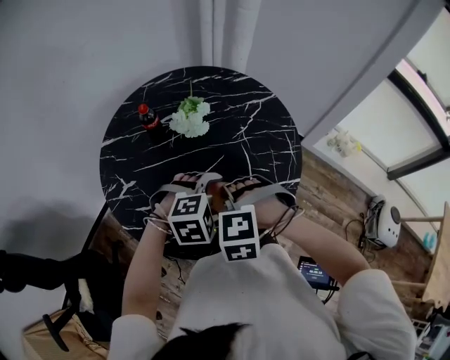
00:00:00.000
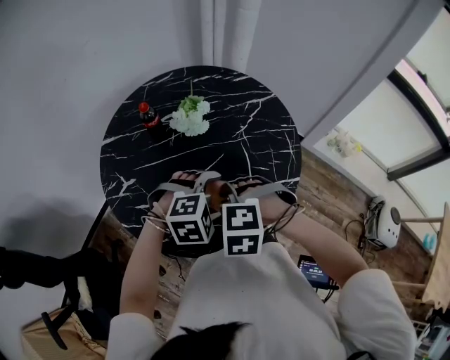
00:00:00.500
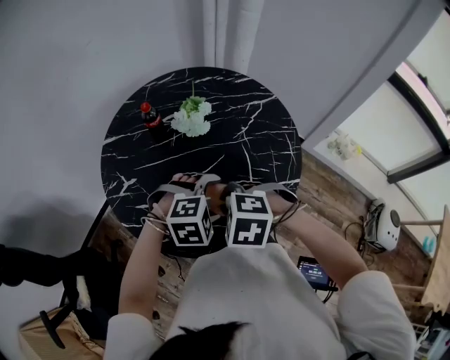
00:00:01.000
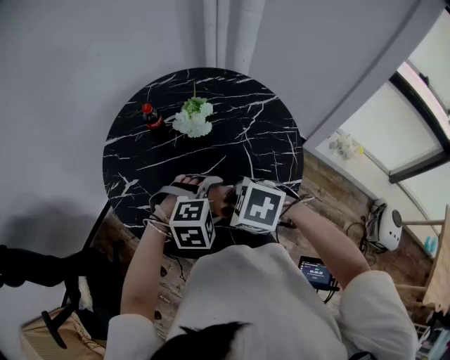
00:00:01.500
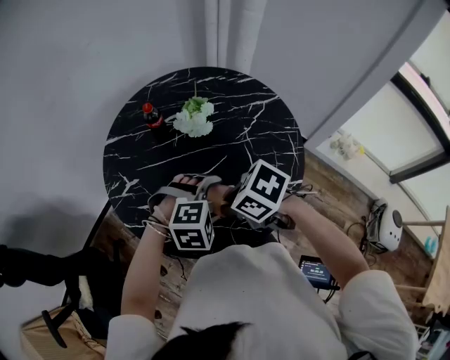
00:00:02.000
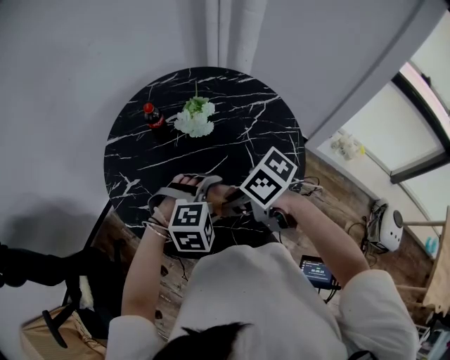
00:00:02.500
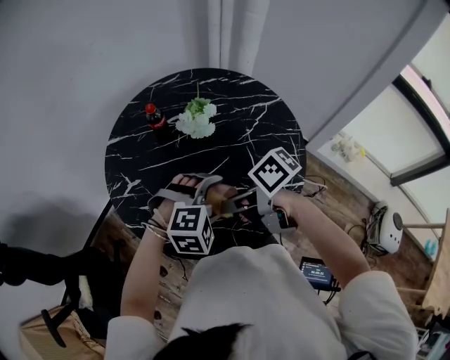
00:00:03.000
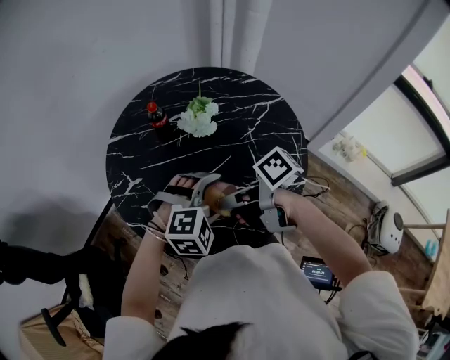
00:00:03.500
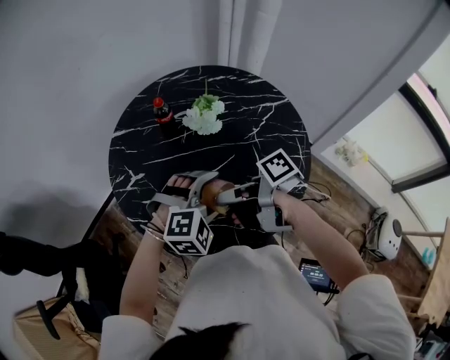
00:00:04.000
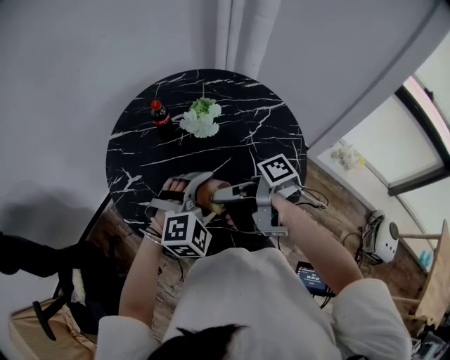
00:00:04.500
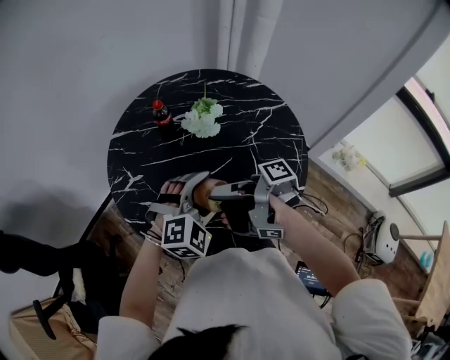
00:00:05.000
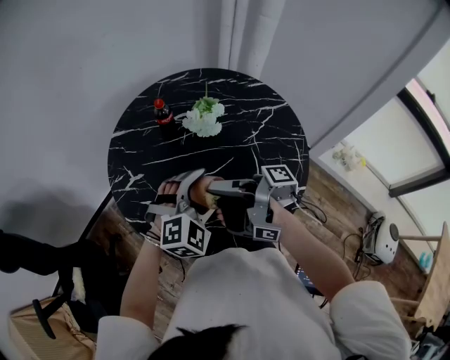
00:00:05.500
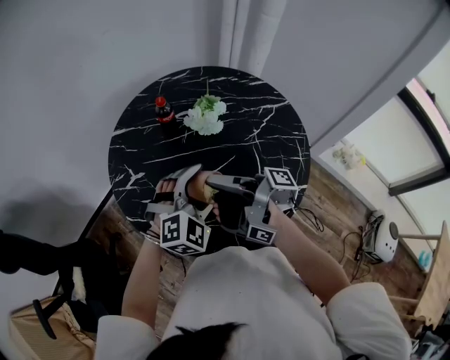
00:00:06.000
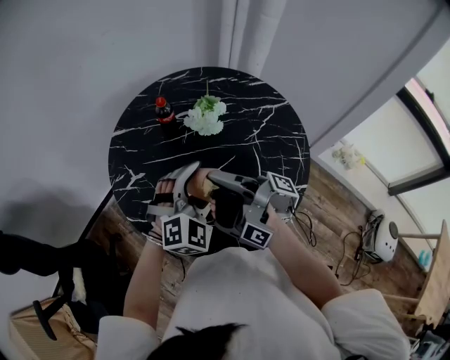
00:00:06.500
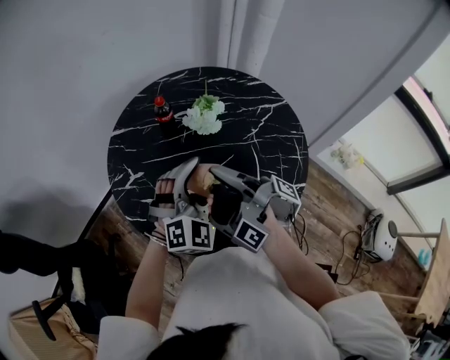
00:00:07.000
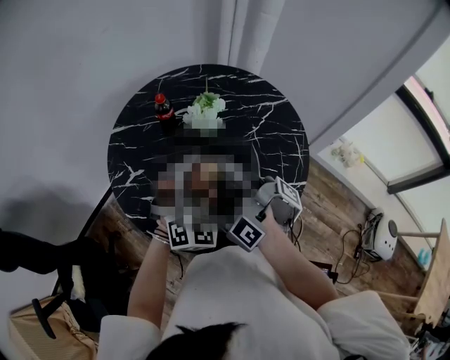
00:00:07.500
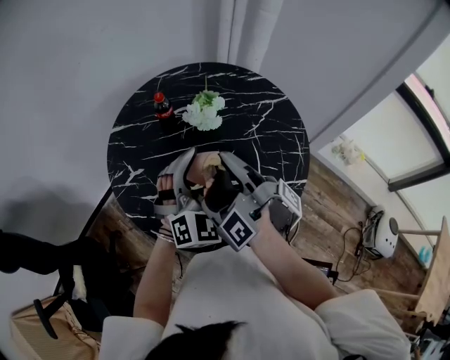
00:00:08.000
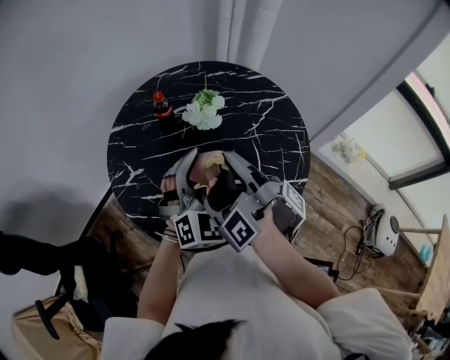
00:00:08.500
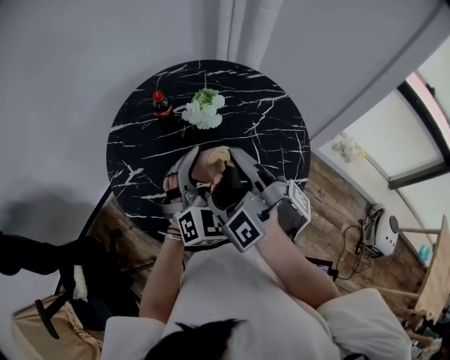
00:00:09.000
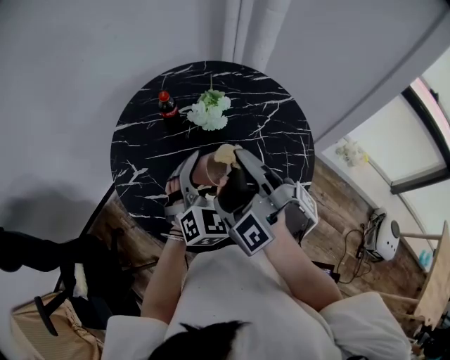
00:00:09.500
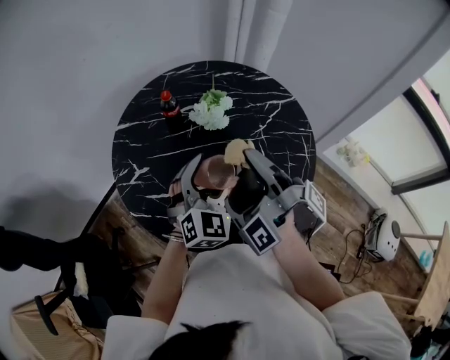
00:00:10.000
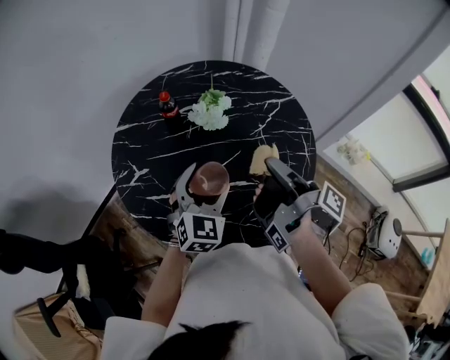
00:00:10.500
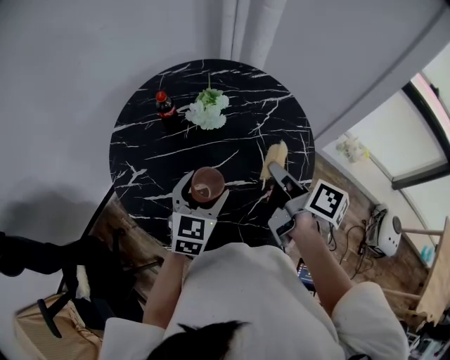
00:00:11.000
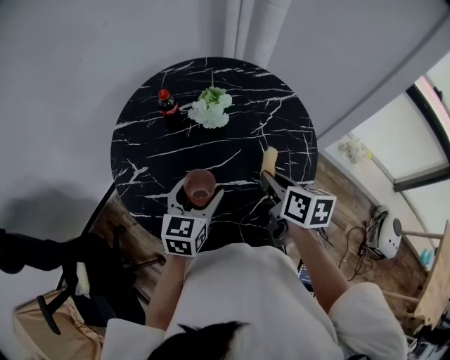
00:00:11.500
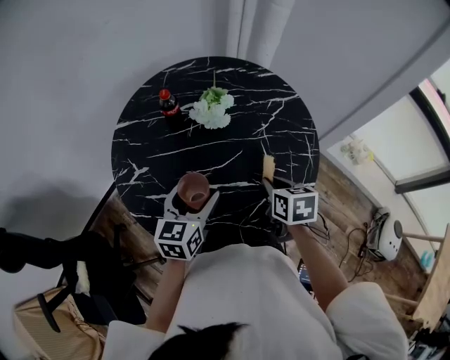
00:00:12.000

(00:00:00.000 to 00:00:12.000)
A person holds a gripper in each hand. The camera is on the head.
00:00:00.000 - 00:00:02.000: The right gripper swivels approximately 70 degrees.
00:00:02.000 - 00:00:04.000: The right gripper points its fingers roughly 40 degrees further upward.
00:00:04.000 - 00:00:06.000: The right gripper changes its angle by approximately 40 degrees, while the left gripper turns by roughly 20 degrees.
00:00:06.000 - 00:00:08.000: The left gripper travels upward by some 5 cm, and turns by roughly 20 degrees, while the right gripper ends up approximately 5 cm from where it was, and turns by about 40 degrees.
00:00:08.000 - 00:00:10.000: There are only small adjustments of the grippers.
00:00:10.000 - 00:00:12.000: The left gripper goes about 5 cm downward, and rotates around the line of its fingers by some 50 degrees, counterclockwise from behind. The right gripper shifts some 20 cm downward, and twists some 100 degrees counterclockwise, seen from behind.

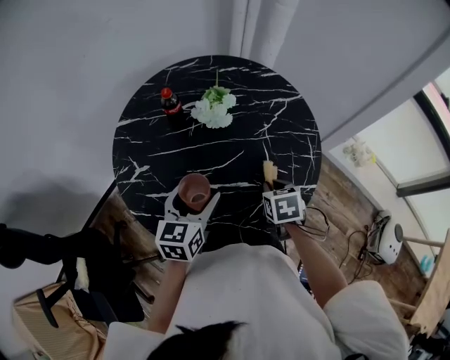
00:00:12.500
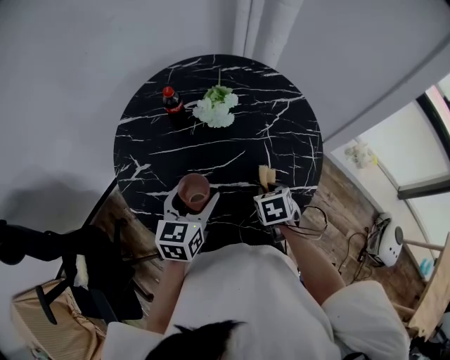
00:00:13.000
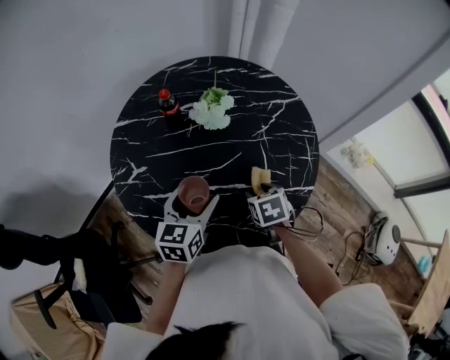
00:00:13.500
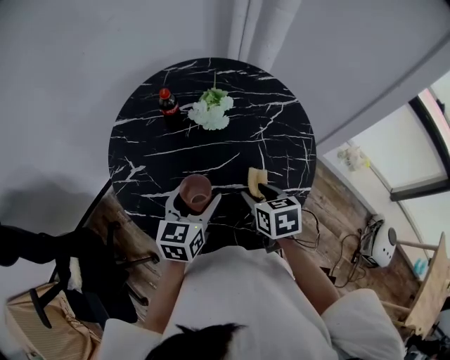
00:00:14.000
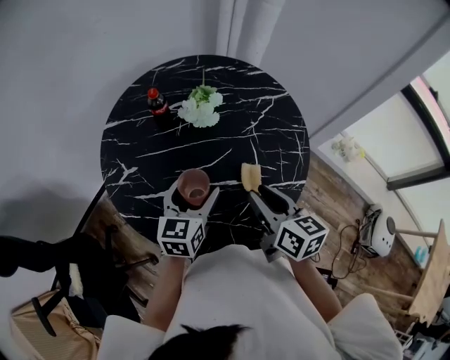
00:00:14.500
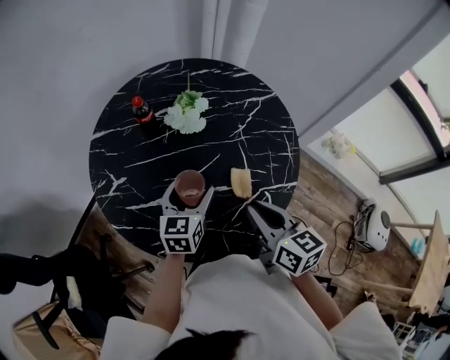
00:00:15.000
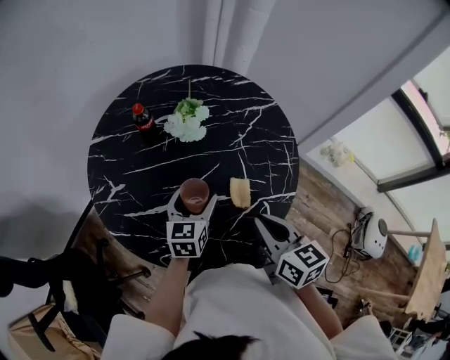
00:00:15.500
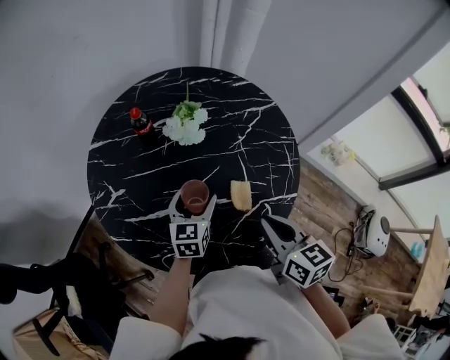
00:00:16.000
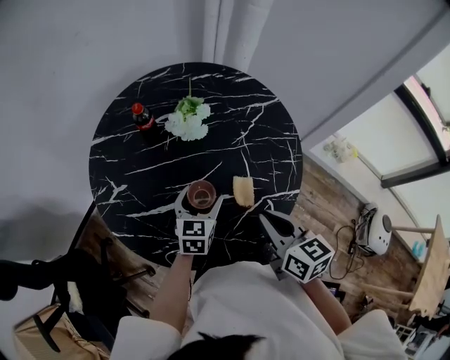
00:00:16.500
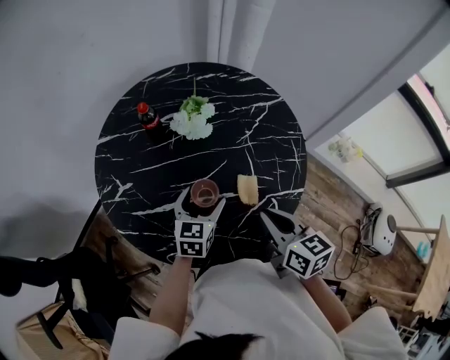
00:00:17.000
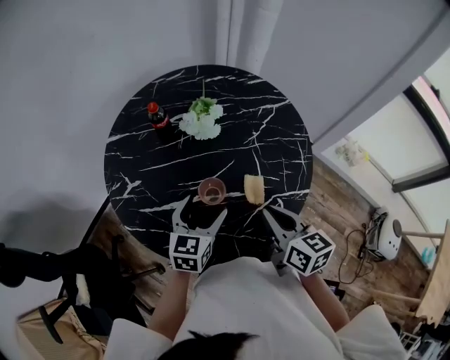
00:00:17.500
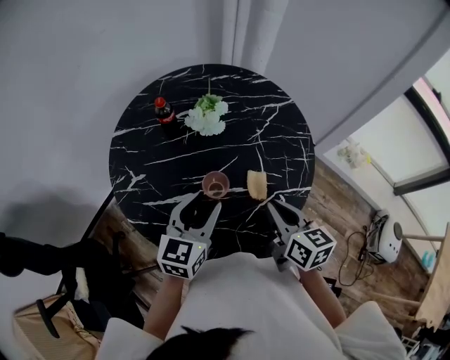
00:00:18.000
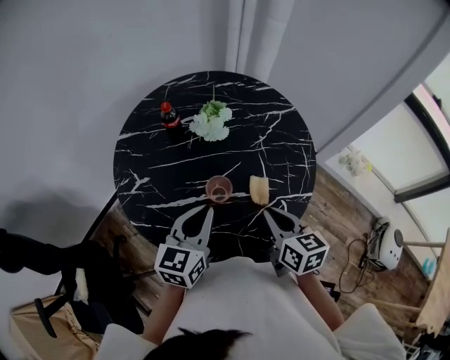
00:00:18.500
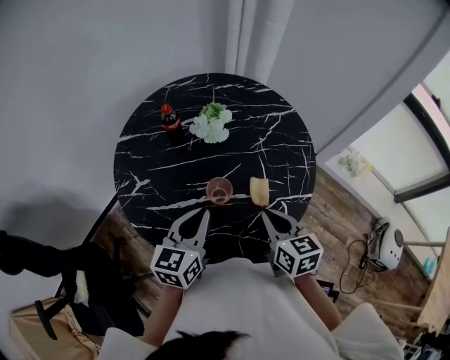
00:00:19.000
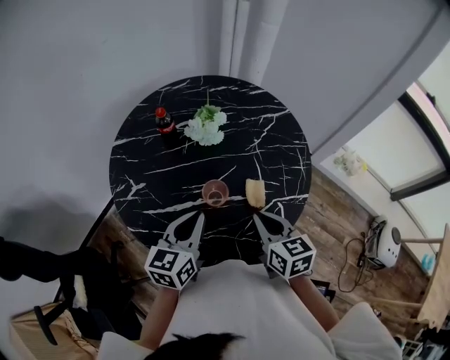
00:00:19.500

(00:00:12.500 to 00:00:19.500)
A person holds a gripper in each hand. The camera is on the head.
00:00:12.500 - 00:00:14.500: The right gripper moves upward, approximately 15 cm, tips its fingers upward by about 40 degrees, and opens.
00:00:14.500 - 00:00:16.000: The left gripper goes roughly 10 cm downward. Meanwhile the right gripper closes its fingers.
00:00:16.000 - 00:00:17.500: The left gripper moves backward, roughly 5 cm.
00:00:17.500 - 00:00:19.500: The left gripper moves upward, some 5 cm, and closes up.

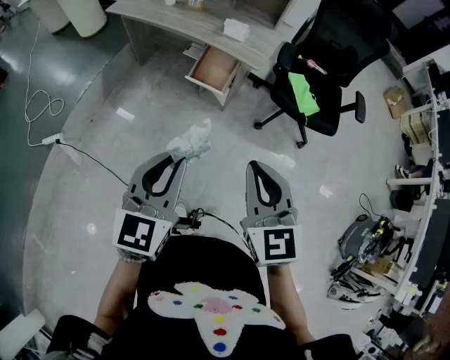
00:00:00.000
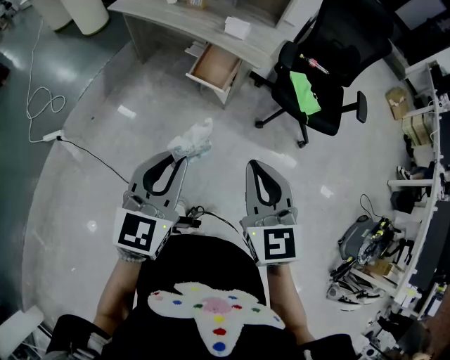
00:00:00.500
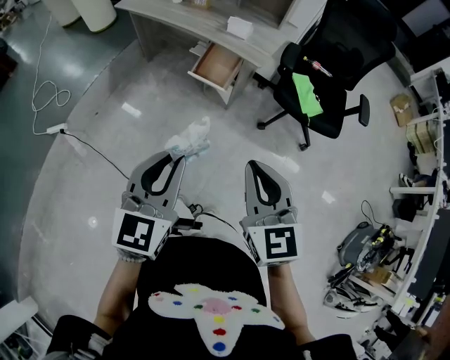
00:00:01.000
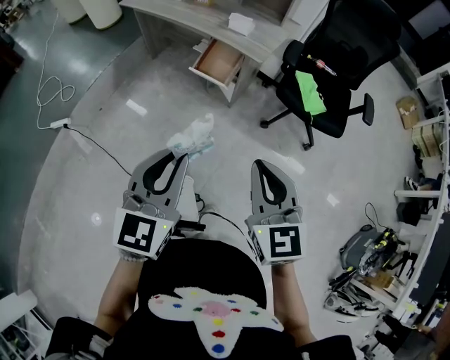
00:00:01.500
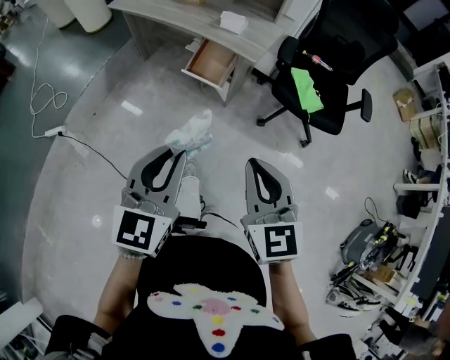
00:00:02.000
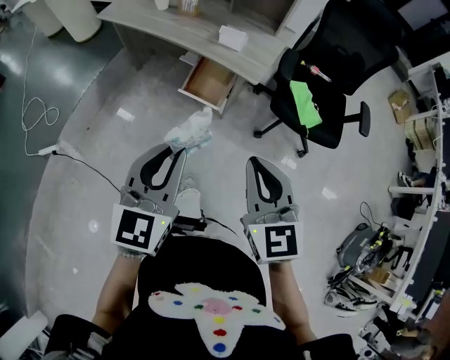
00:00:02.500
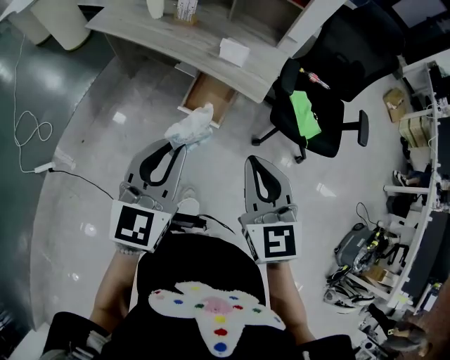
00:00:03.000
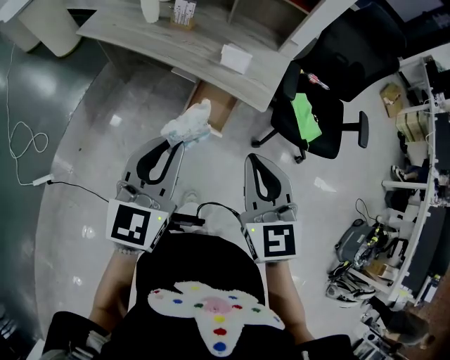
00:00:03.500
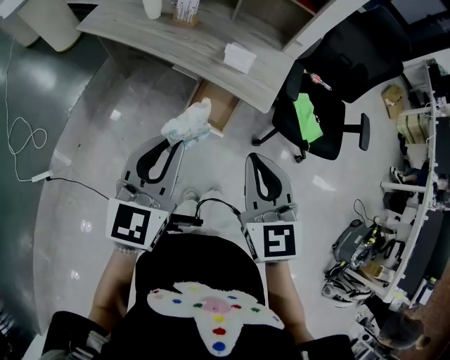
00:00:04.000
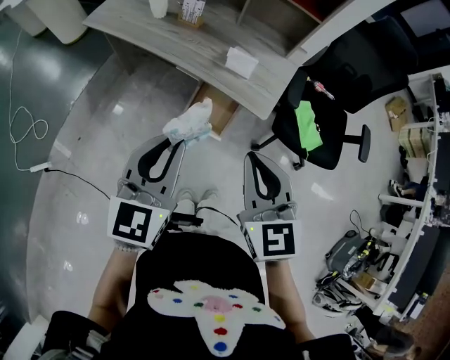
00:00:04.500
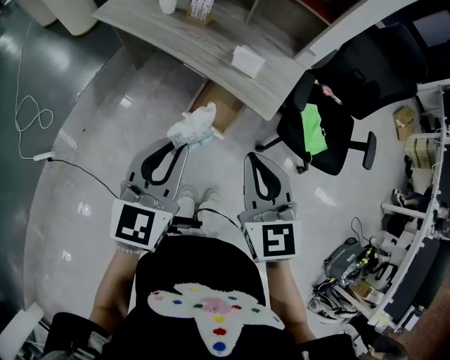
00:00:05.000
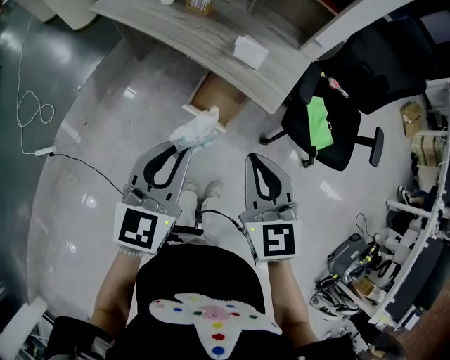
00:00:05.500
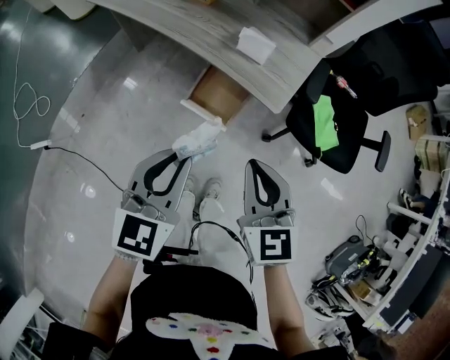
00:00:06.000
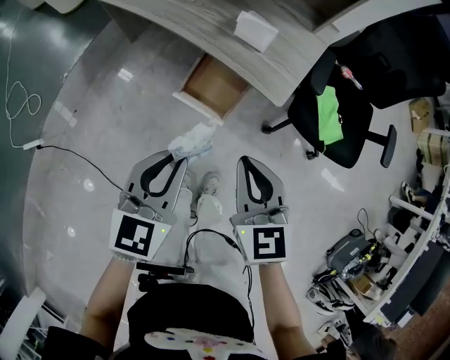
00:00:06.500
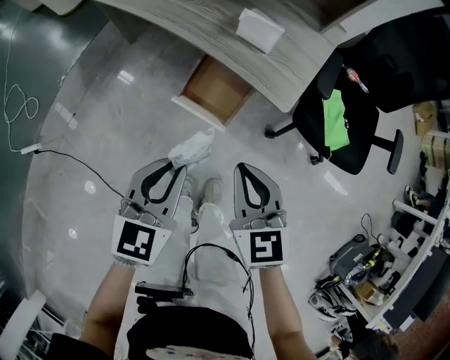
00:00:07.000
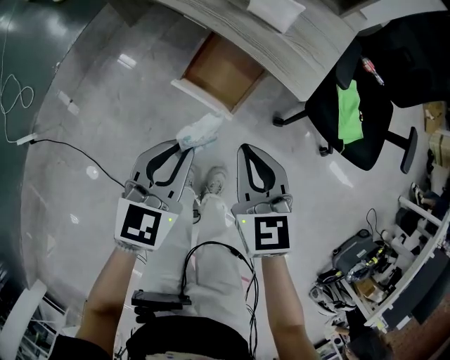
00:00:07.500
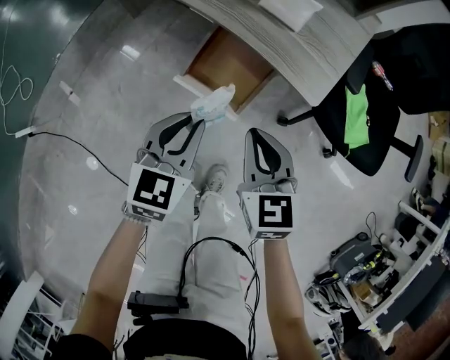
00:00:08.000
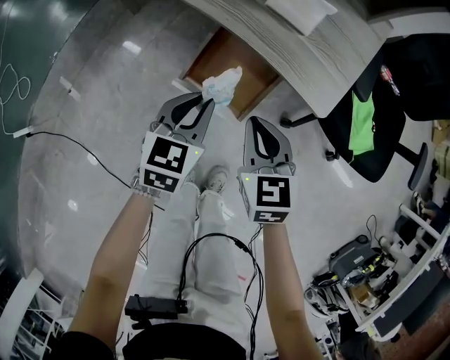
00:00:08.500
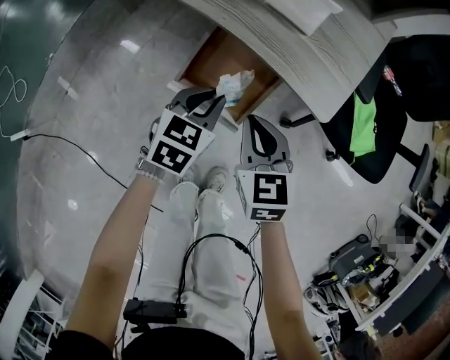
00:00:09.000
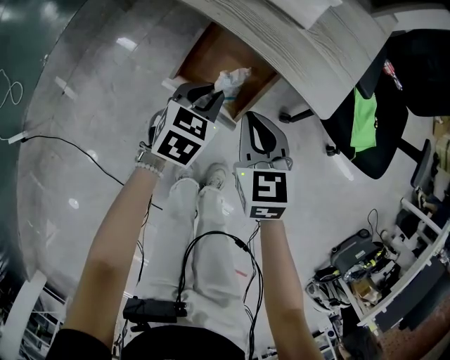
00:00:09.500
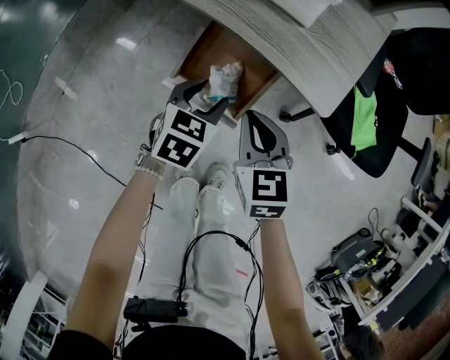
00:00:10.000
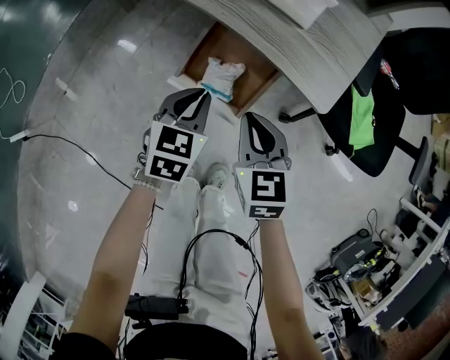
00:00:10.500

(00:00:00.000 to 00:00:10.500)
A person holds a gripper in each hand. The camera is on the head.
00:00:00.000 - 00:00:02.000: The two grippers go roughly 5 cm to the right.
00:00:02.000 - 00:00:04.000: The grippers both shift forward and to the left by about 30 cm.
00:00:04.000 - 00:00:06.500: The right gripper moves downward, about 15 cm, while the left gripper travels downward and to the right by about 15 cm.
00:00:06.500 - 00:00:08.500: The two grippers go about 25 cm downward and forward.
00:00:08.500 - 00:00:10.500: The left gripper opens, then closes once more.
